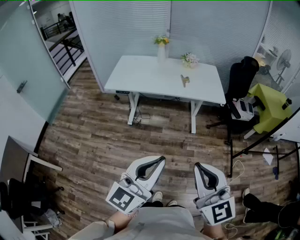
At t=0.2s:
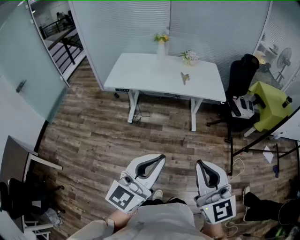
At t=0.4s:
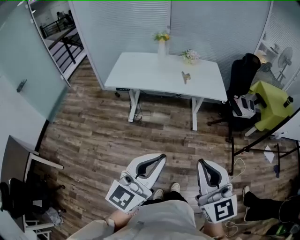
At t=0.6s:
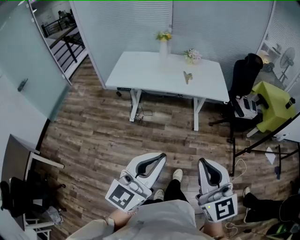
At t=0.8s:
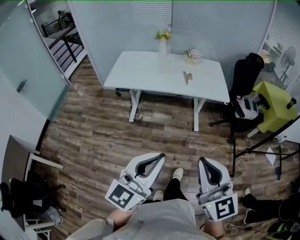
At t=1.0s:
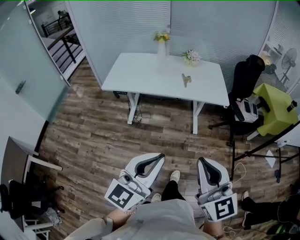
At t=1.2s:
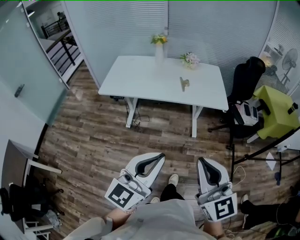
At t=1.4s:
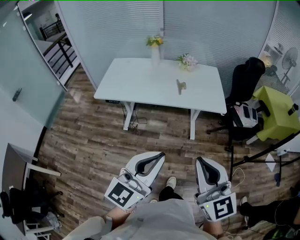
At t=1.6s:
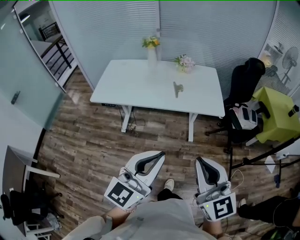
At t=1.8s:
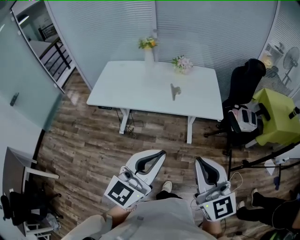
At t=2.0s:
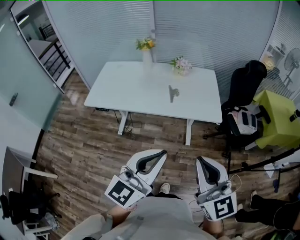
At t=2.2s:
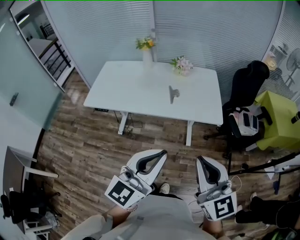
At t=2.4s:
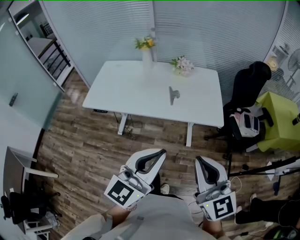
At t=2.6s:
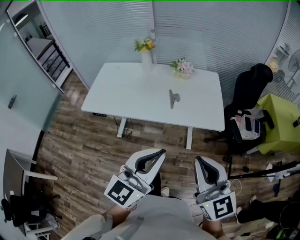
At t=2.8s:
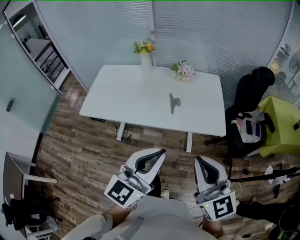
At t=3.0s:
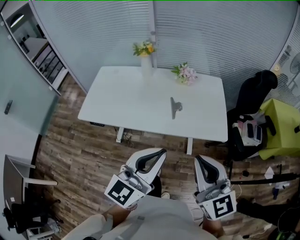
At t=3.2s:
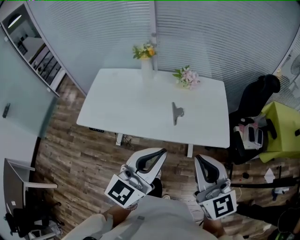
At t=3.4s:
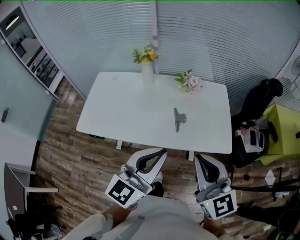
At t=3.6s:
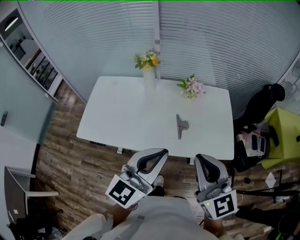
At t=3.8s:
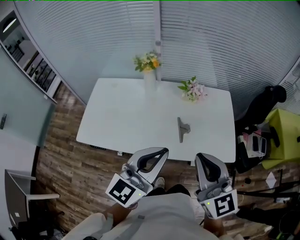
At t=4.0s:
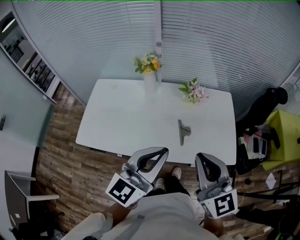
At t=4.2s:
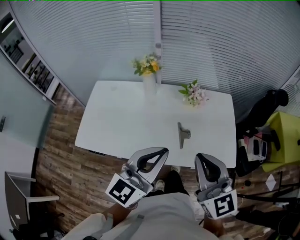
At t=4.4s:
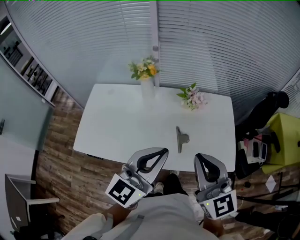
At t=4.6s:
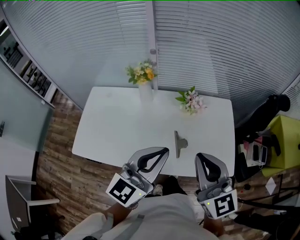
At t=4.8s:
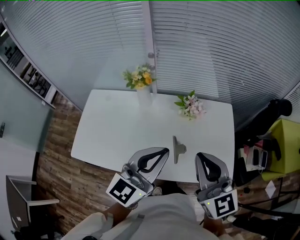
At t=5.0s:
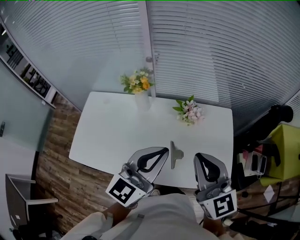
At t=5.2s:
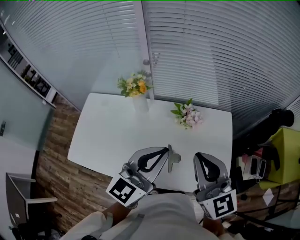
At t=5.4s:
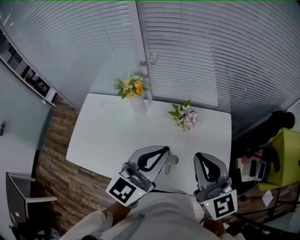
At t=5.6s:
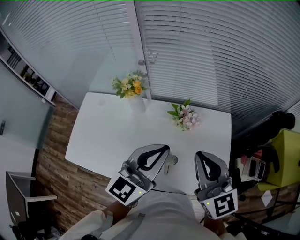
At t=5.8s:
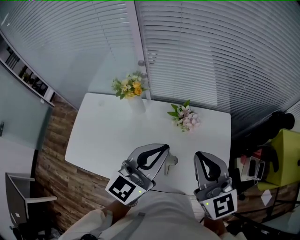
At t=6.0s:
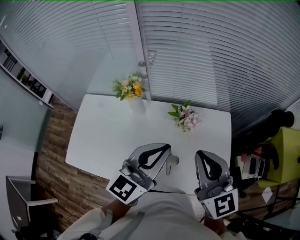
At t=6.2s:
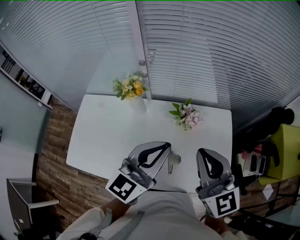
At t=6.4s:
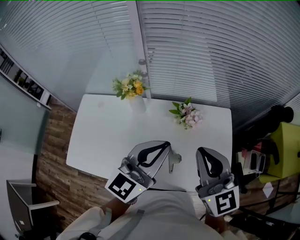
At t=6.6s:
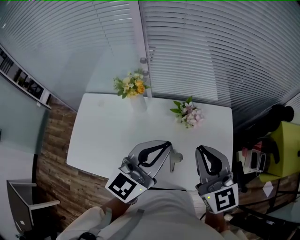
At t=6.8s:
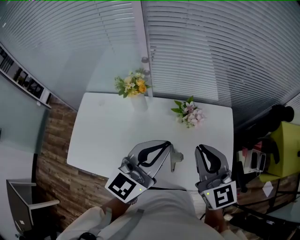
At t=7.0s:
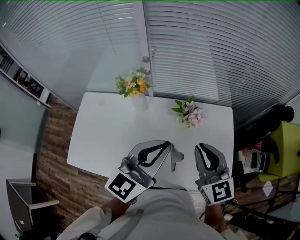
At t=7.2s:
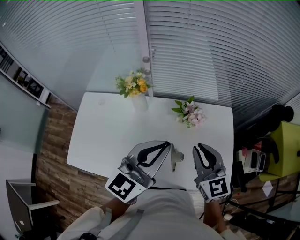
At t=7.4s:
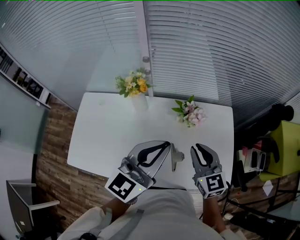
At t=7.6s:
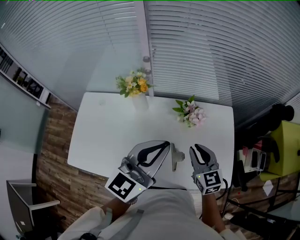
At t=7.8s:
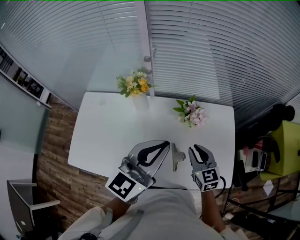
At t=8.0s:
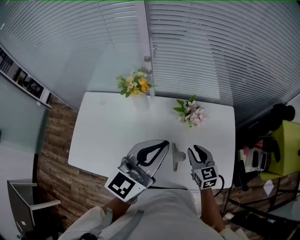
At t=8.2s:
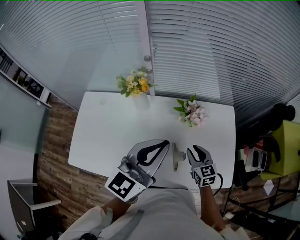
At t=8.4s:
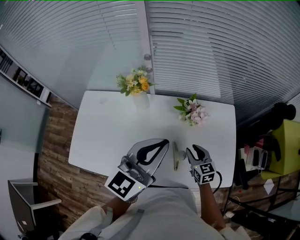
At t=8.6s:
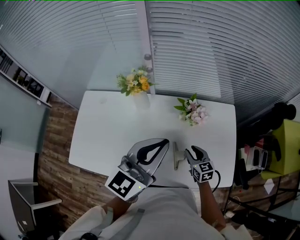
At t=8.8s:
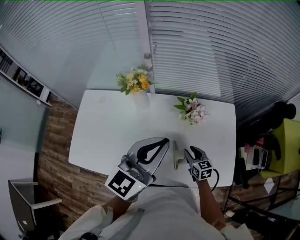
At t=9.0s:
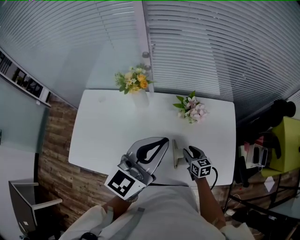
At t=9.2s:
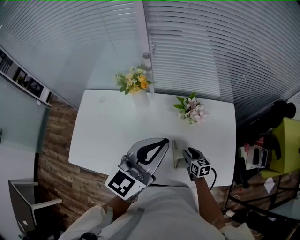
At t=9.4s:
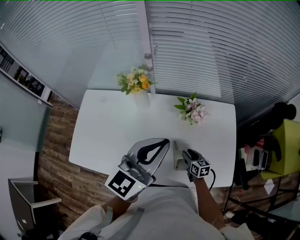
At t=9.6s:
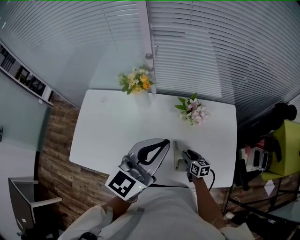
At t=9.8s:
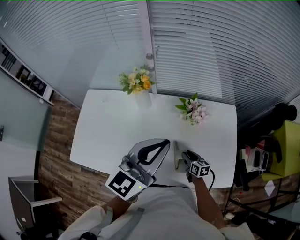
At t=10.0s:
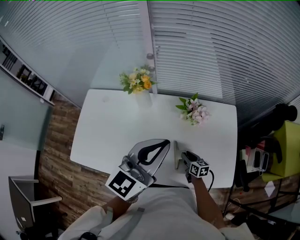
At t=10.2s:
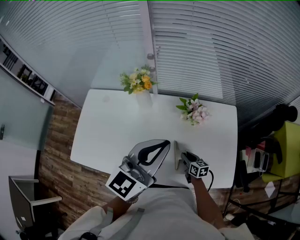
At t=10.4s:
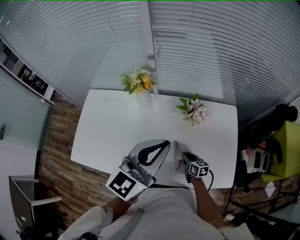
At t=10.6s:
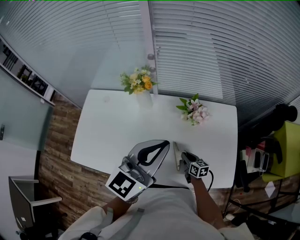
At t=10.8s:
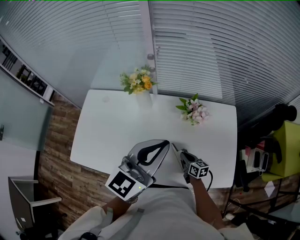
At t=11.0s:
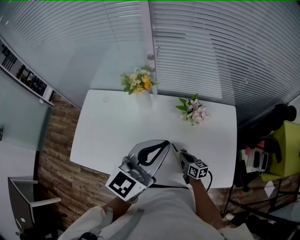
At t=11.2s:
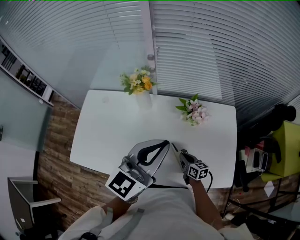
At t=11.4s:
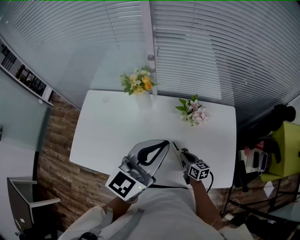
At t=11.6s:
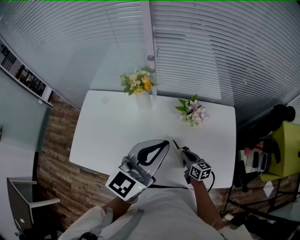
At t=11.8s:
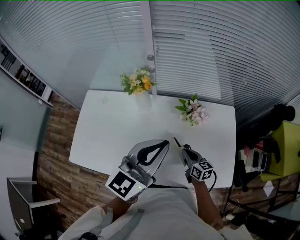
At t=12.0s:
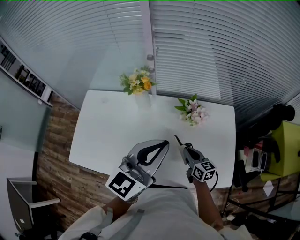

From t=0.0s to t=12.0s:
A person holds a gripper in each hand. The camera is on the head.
From t=0.0s to t=1.6s: Both grippers travel together forward, approximately 25 cm.
From t=1.6s to t=3.0s: Both grippers travel together forward, roughly 25 cm.
From t=3.0s to t=4.4s: Both grippers travel together forward, about 25 cm.
From t=4.4s to t=6.0s: The two grippers go approximately 20 cm forward.
From t=6.0s to t=7.6s: The right gripper moves downward, some 20 cm, and rotates roughly 20 degrees.
From t=7.6s to t=9.0s: The right gripper heads downward, covering approximately 20 cm, and turns by roughly 30 degrees.
From t=9.0s to t=10.4s: The right gripper moves downward, roughly 5 cm.
From t=10.4s to t=12.0s: The right gripper travels upward by about 15 cm.

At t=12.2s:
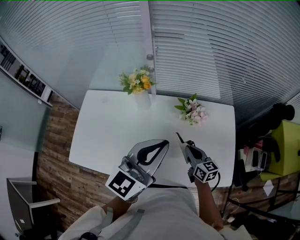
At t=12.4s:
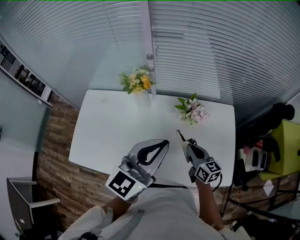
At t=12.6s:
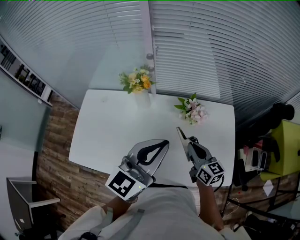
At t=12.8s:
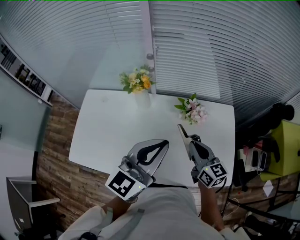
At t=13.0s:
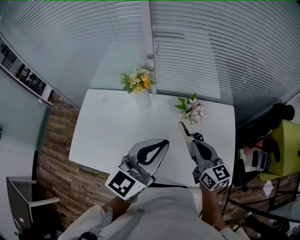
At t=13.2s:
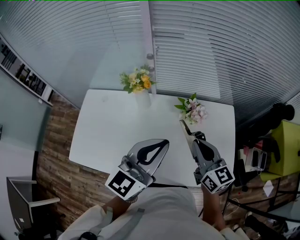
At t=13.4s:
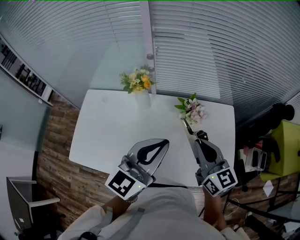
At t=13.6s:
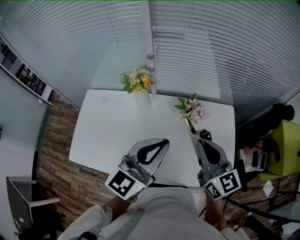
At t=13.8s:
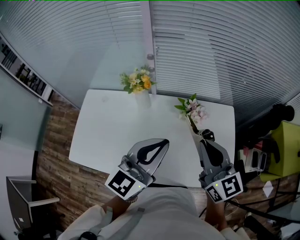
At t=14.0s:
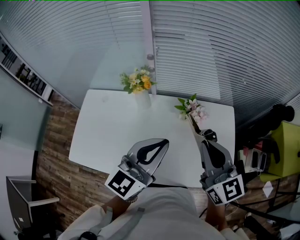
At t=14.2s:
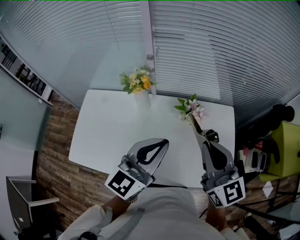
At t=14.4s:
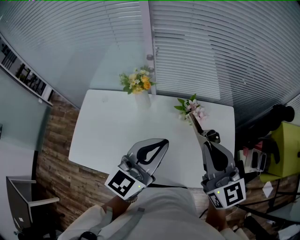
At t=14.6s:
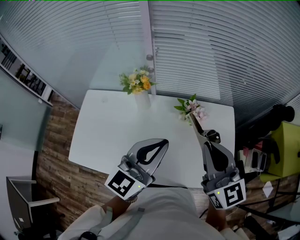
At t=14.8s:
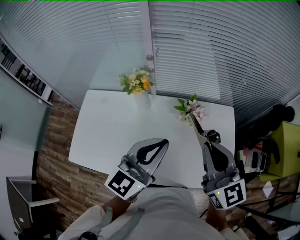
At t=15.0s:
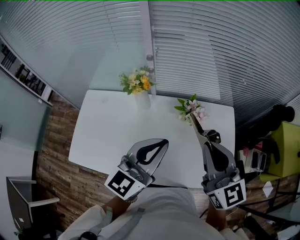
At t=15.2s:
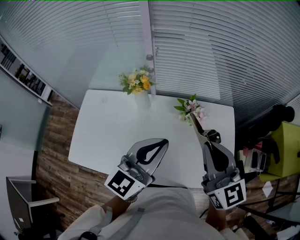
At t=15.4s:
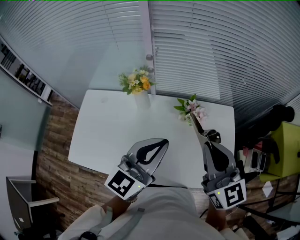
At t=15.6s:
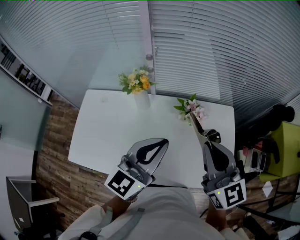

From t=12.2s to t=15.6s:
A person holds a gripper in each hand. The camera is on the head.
From t=12.2s to t=13.8s: The right gripper heads upward, covering roughly 25 cm, and changes its angle by approximately 30 degrees.
From t=13.8s to t=15.6s: There are only small adjustments of the grippers.

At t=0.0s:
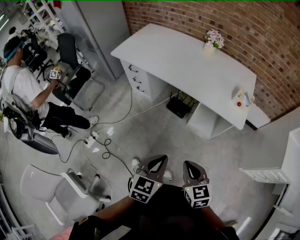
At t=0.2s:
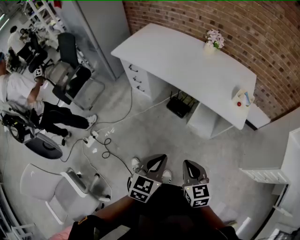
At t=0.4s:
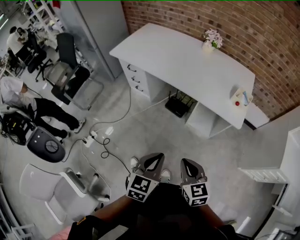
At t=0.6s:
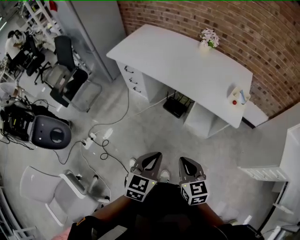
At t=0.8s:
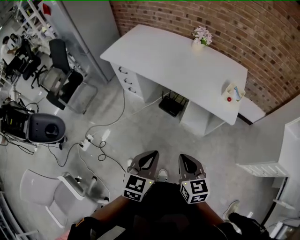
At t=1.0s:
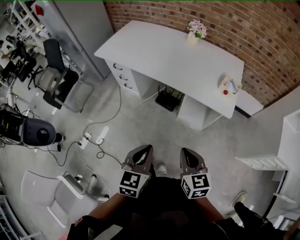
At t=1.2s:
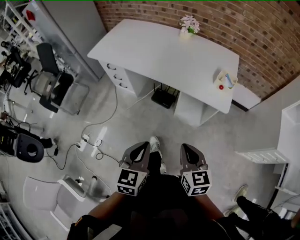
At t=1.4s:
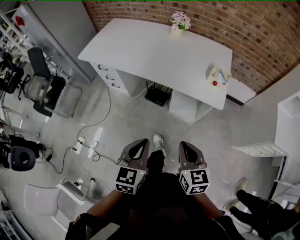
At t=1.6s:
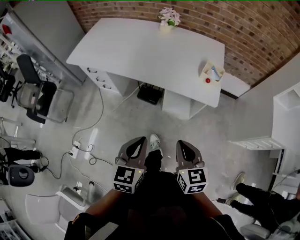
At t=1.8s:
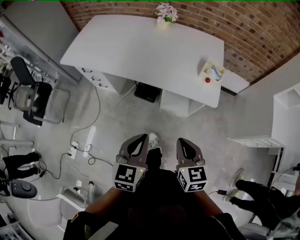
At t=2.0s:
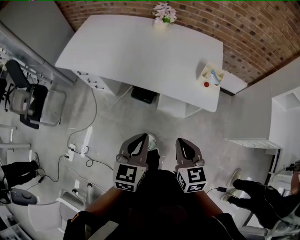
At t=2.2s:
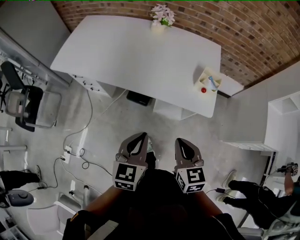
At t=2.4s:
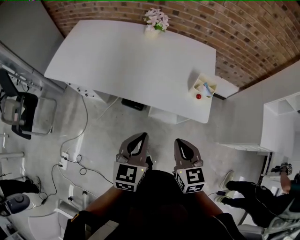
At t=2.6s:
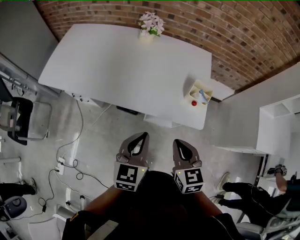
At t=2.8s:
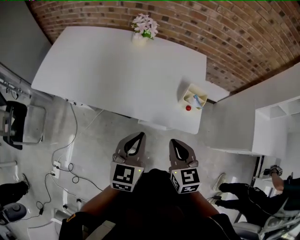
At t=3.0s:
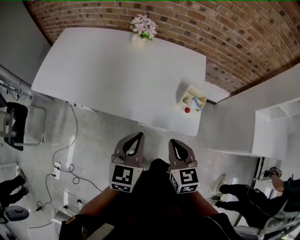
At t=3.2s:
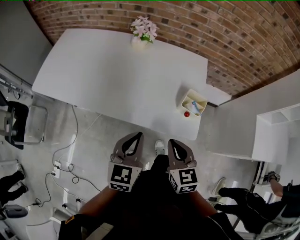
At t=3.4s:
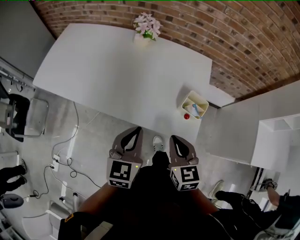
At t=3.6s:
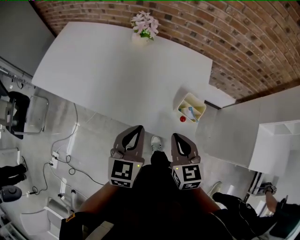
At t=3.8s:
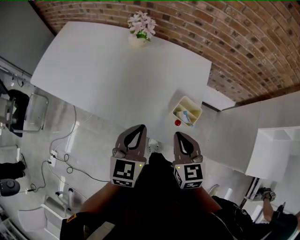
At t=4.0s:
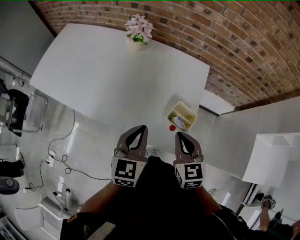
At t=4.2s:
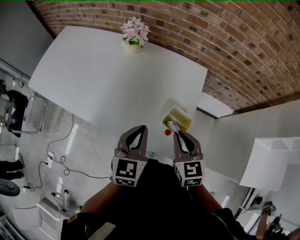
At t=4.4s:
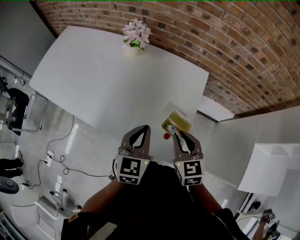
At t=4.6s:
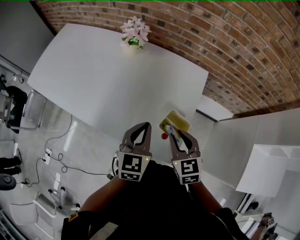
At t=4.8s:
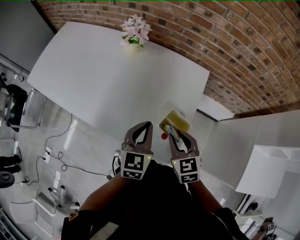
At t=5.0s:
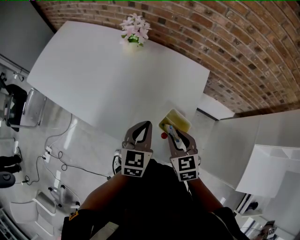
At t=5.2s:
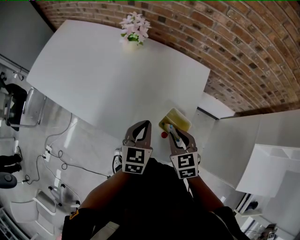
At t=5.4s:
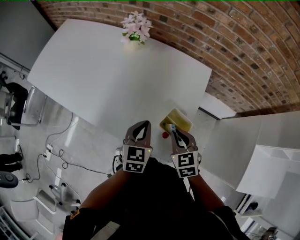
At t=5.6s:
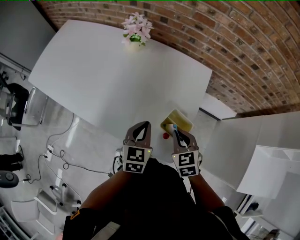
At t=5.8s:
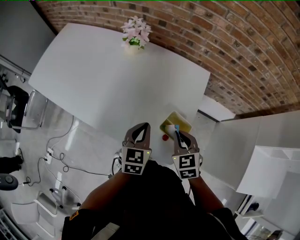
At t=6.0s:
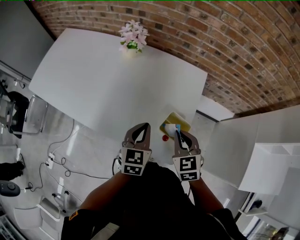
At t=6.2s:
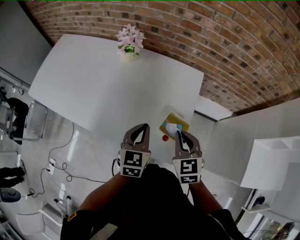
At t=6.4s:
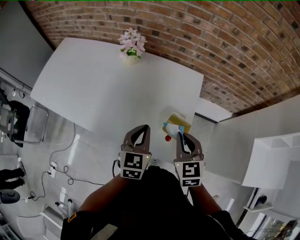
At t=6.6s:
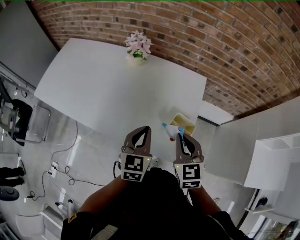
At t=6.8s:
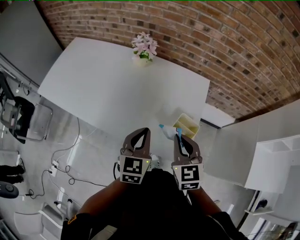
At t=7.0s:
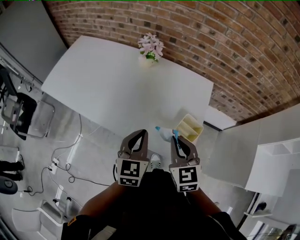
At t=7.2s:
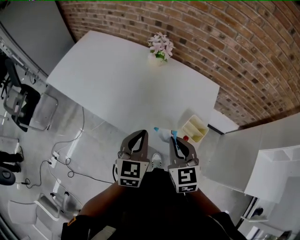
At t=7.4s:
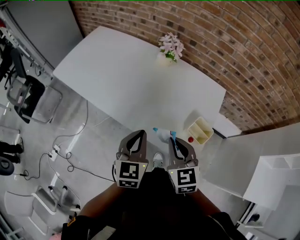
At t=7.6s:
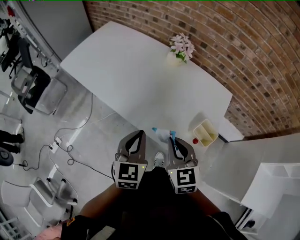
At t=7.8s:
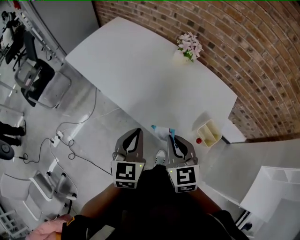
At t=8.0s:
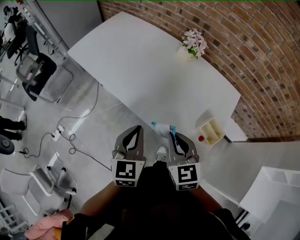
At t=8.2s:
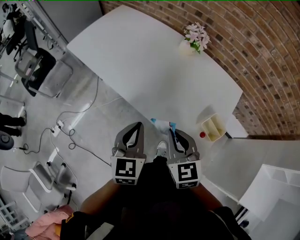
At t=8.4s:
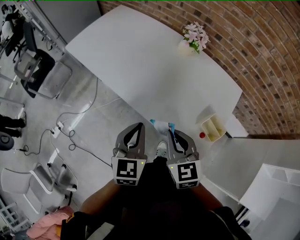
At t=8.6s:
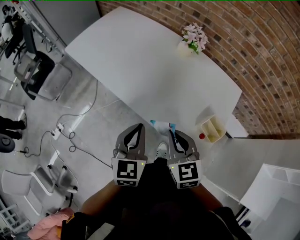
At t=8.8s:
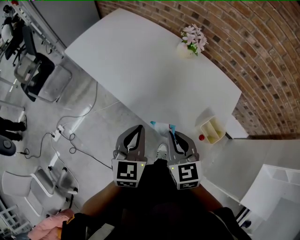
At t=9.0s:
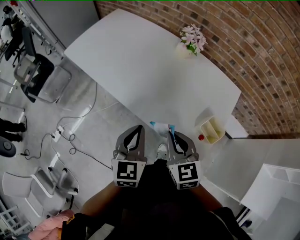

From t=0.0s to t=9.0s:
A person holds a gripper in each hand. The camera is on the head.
From t=0.0s to t=1.6s: The right gripper is displaced to the right and forward by roughly 10 cm. Meanwhile the left gripper heads forward, covering about 10 cm.
From t=1.6s to t=3.0s: The grippers both shift forward by roughly 25 cm.
From t=3.0s to t=4.4s: The left gripper shifts approximately 20 cm to the right and forward, while the right gripper goes roughly 25 cm forward and to the right.
From t=4.4s to t=6.0s: The left gripper heads downward, covering approximately 5 cm.
From t=6.0s to t=7.6s: The left gripper is displaced to the left, backward and upward by approximately 25 cm. The right gripper shifts roughly 20 cm to the left.
From t=7.6s to t=9.0s: There are only small adjustments of the grippers.
